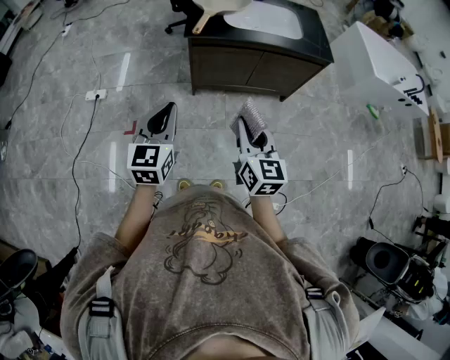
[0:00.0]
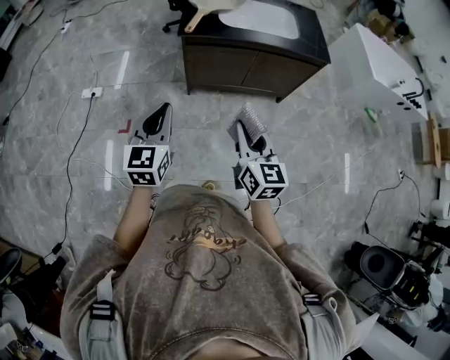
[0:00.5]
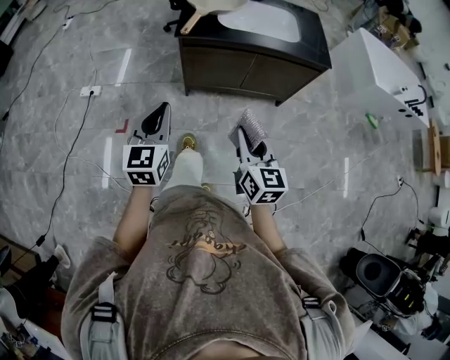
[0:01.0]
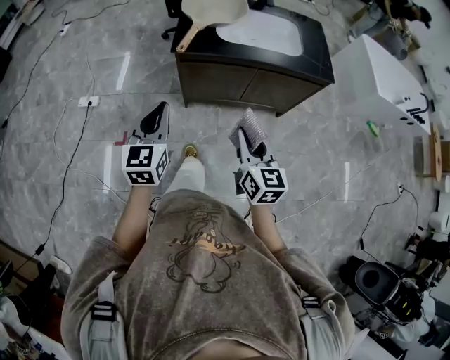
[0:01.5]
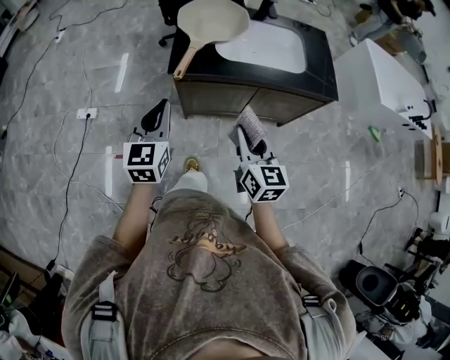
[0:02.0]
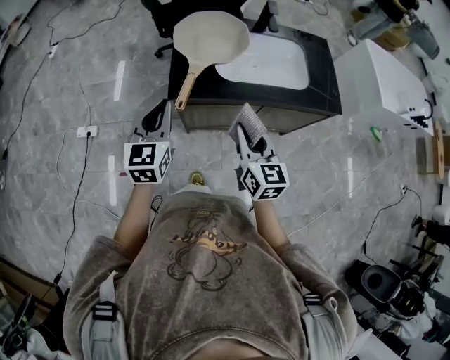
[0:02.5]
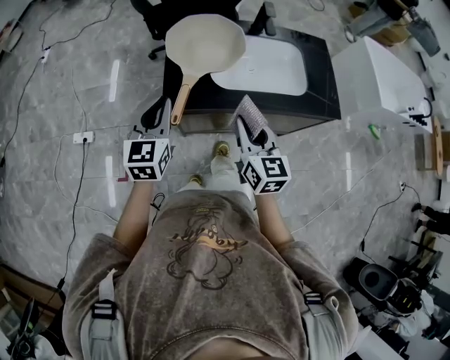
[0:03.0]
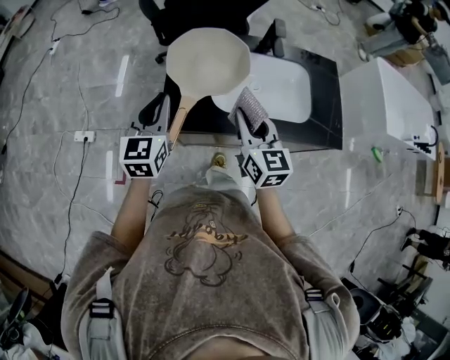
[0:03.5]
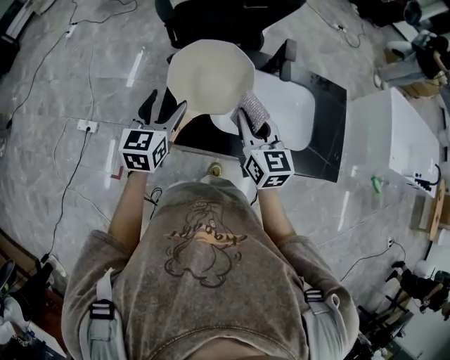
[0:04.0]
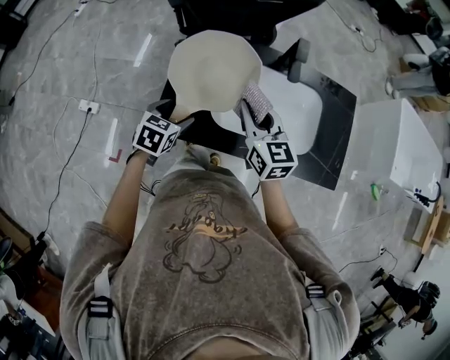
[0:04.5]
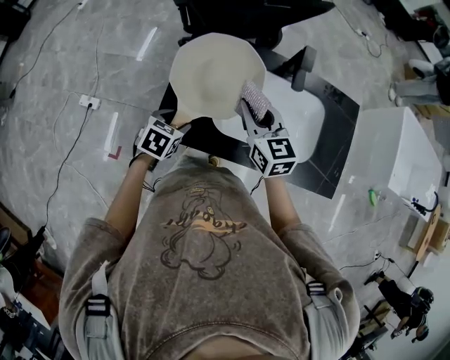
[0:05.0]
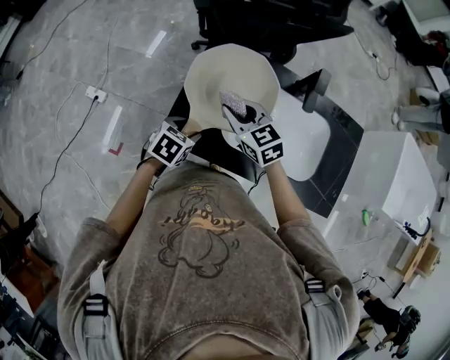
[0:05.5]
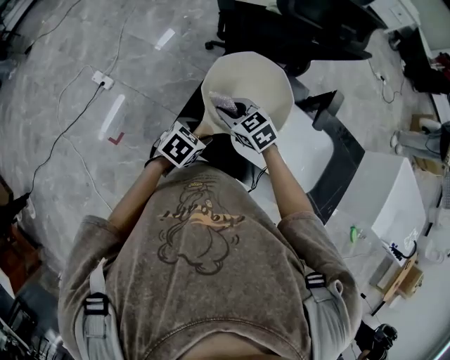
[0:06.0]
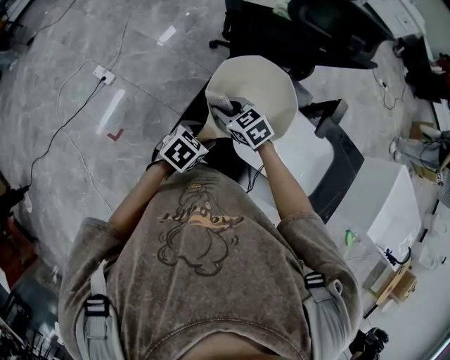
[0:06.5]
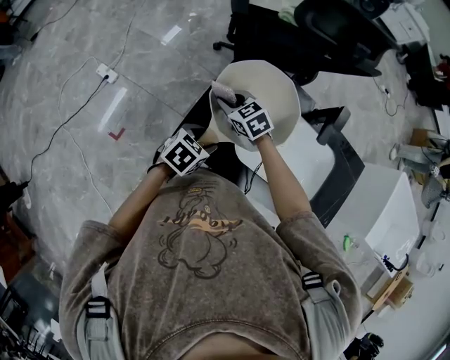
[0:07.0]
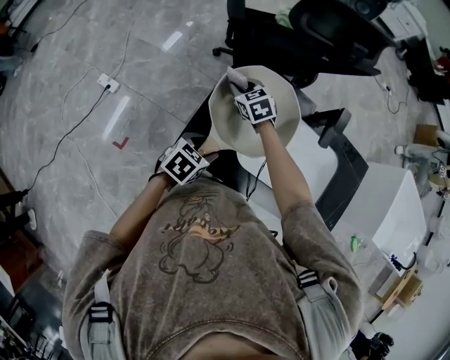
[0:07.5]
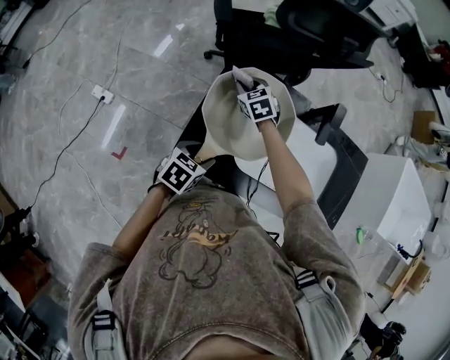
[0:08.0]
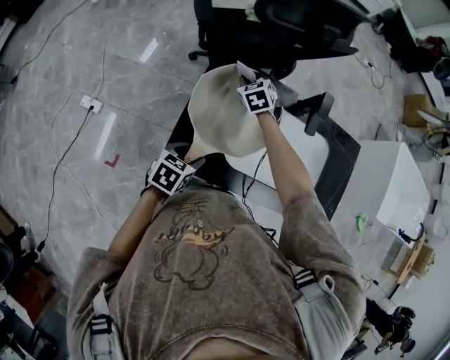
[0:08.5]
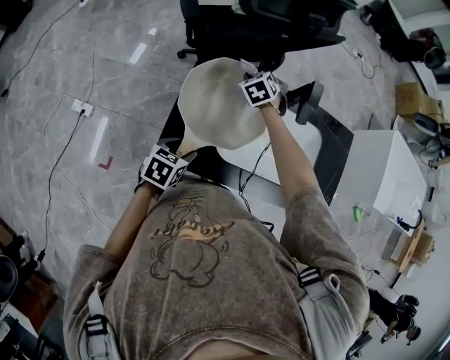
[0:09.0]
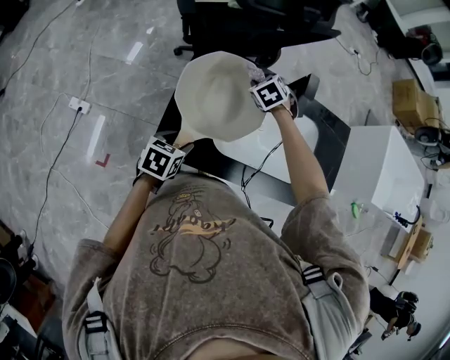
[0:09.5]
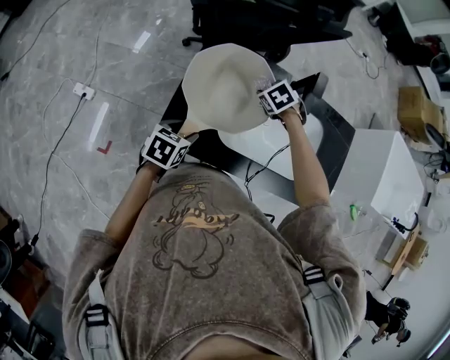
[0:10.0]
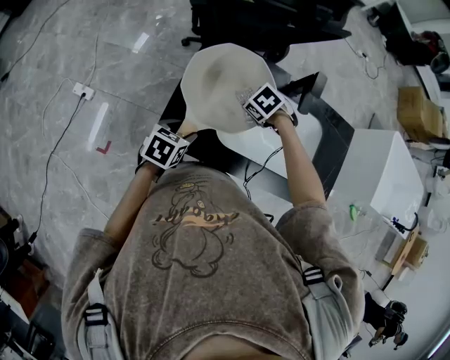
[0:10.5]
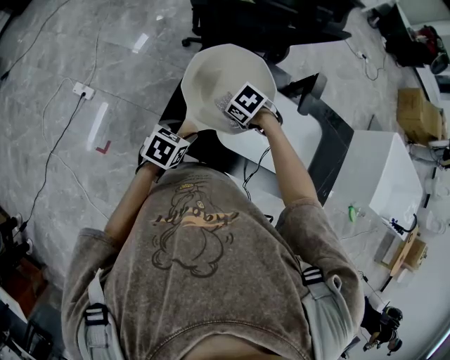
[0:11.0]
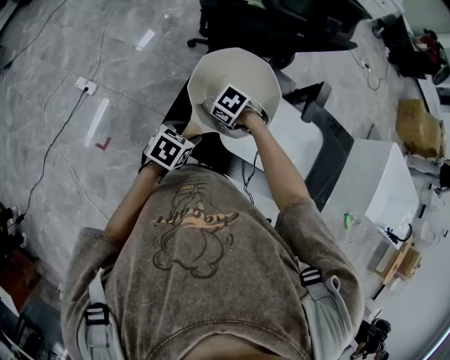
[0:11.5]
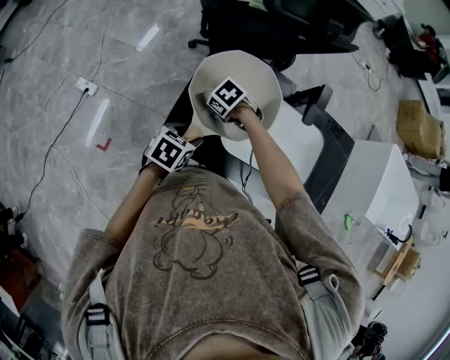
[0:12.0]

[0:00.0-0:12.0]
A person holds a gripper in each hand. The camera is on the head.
0:00.0 to 0:02.0: The grippers both shift forward by about 25 cm.
0:02.0 to 0:04.0: Both grippers move forward, roughly 35 cm. The left gripper opens up.
0:04.0 to 0:06.0: The right gripper goes some 25 cm to the left, downward and forward, and swivels some 60 degrees. Meanwhile the left gripper heads downward, covering some 15 cm, and tilts its fingers approximately 30 degrees downward.
0:06.0 to 0:08.0: The right gripper shifts approximately 20 cm forward, and rotates some 30 degrees.
0:08.0 to 0:10.0: The right gripper travels to the right by some 20 cm, and turns by roughly 30 degrees.
0:10.0 to 0:12.0: The right gripper changes place by approximately 20 cm, and swivels about 20 degrees.

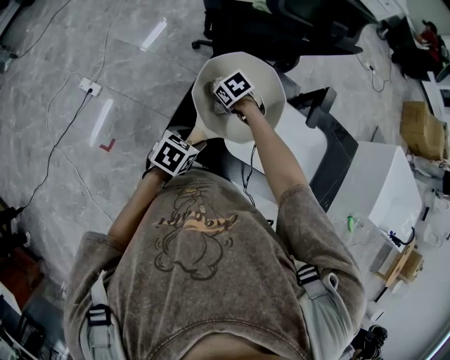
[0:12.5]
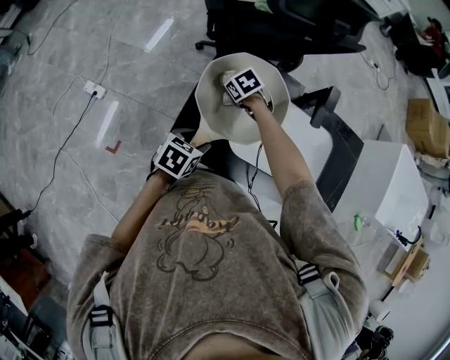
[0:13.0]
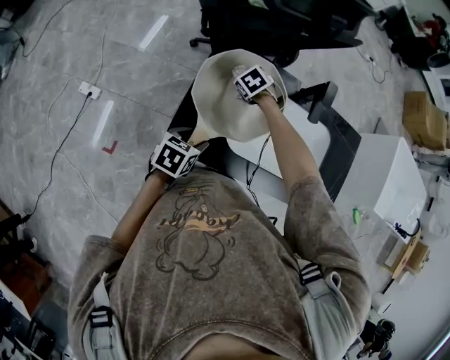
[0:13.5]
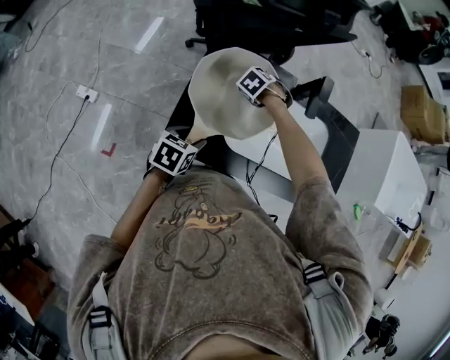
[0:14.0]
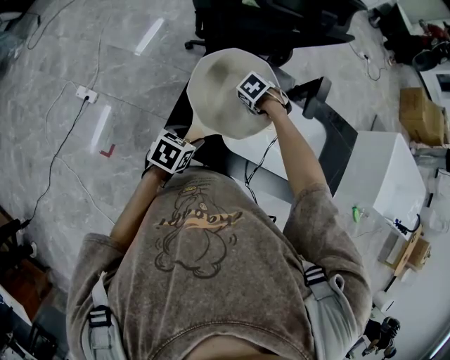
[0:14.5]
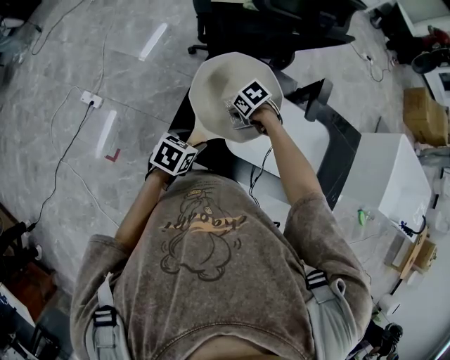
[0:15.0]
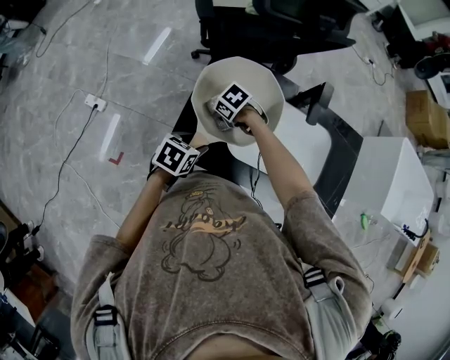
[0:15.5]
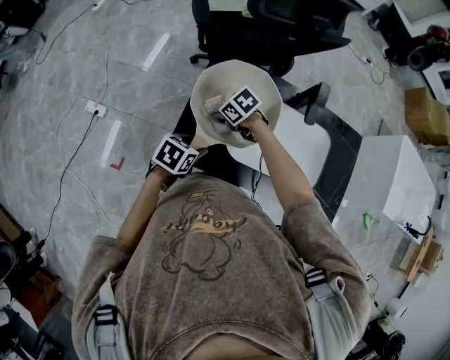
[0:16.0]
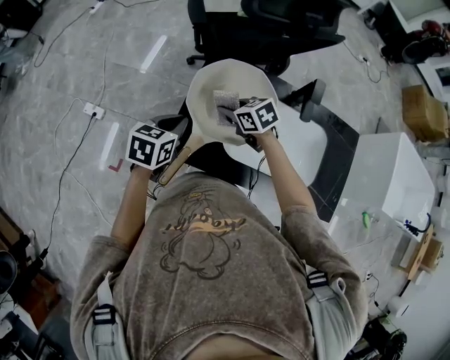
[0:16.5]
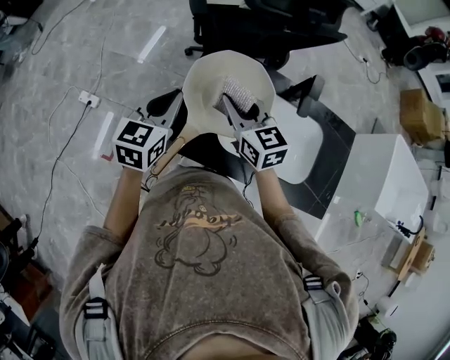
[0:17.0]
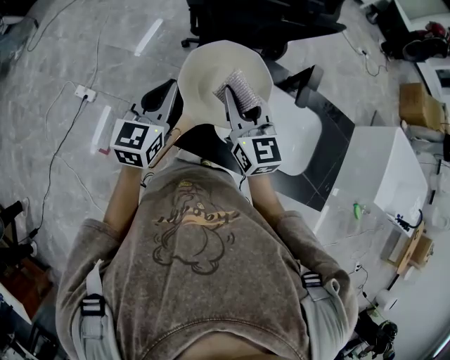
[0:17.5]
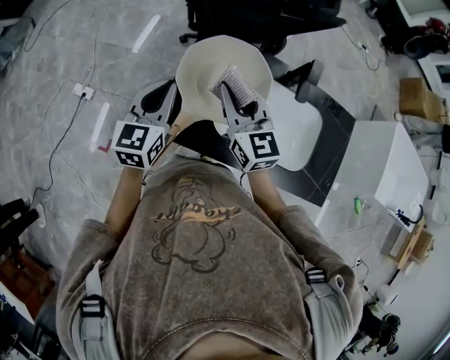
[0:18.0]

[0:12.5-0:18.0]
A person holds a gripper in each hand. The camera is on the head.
0:12.5 to 0:14.5: The right gripper moves roughly 15 cm, and rotates some 20 degrees.
0:14.5 to 0:16.0: The right gripper shifts by some 15 cm, and tilts its fingers roughly 30 degrees upward.
0:16.0 to 0:18.0: Both grippers move upward, roughly 20 cm. The right gripper angles its fingers upward, by roughly 50 degrees. Meanwhile the left gripper tips its fingers upward by roughly 40 degrees, and closes up.

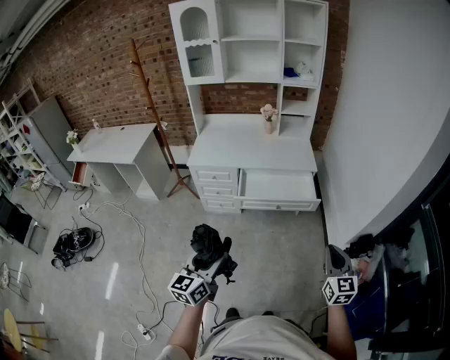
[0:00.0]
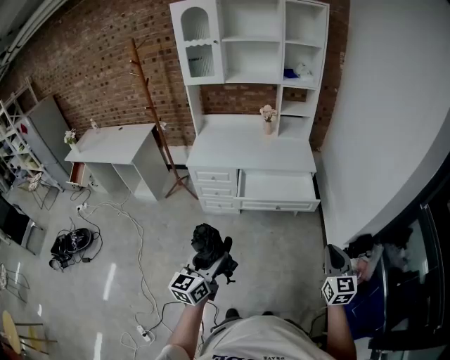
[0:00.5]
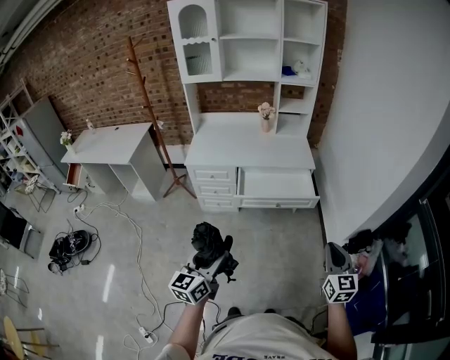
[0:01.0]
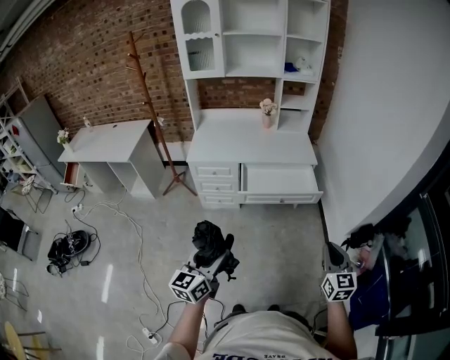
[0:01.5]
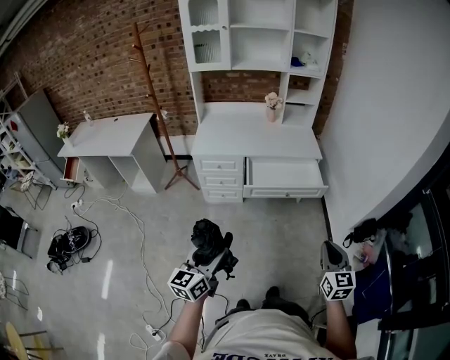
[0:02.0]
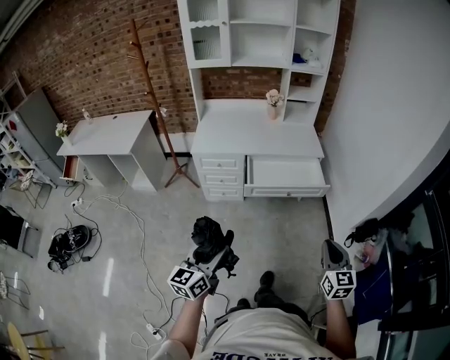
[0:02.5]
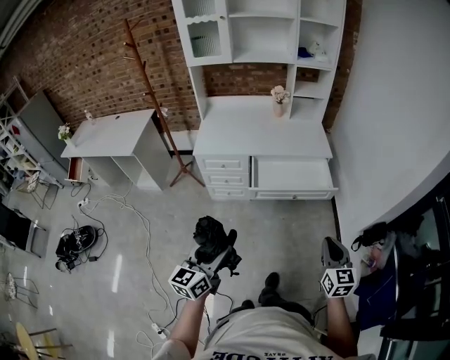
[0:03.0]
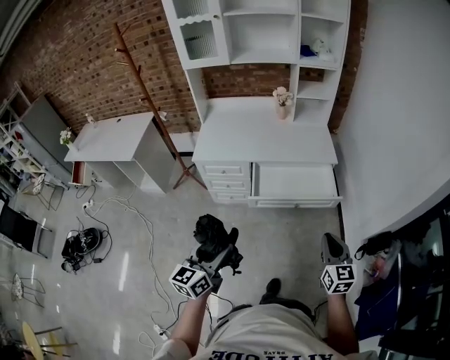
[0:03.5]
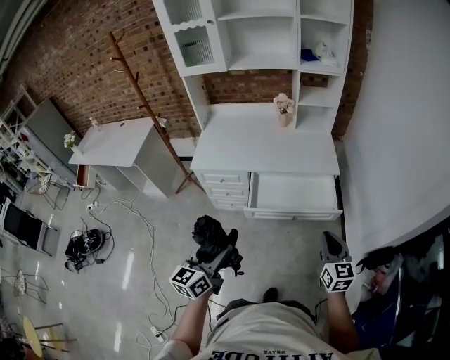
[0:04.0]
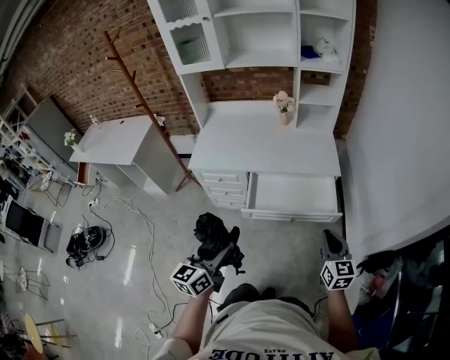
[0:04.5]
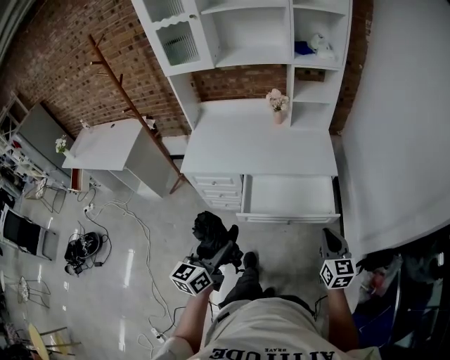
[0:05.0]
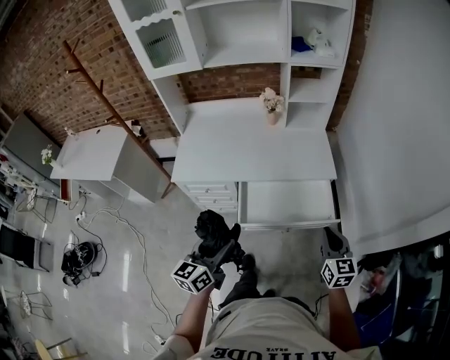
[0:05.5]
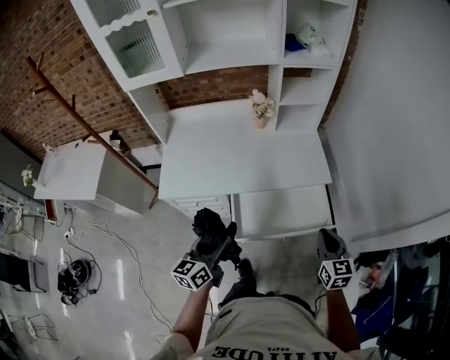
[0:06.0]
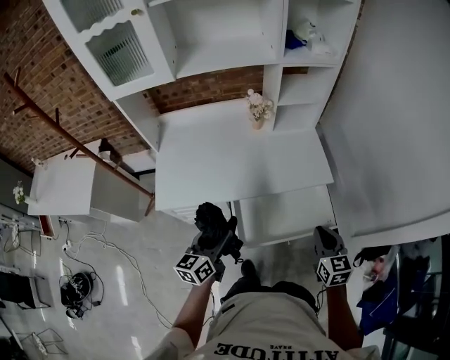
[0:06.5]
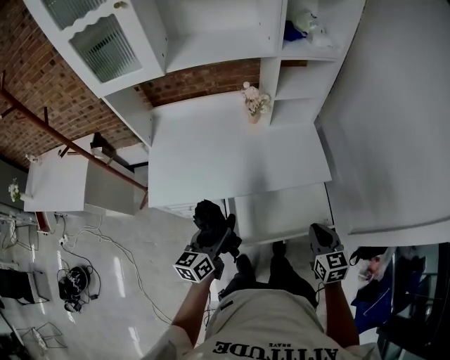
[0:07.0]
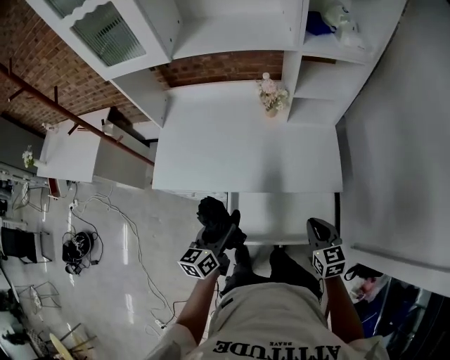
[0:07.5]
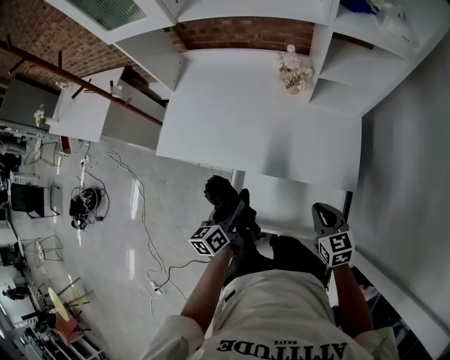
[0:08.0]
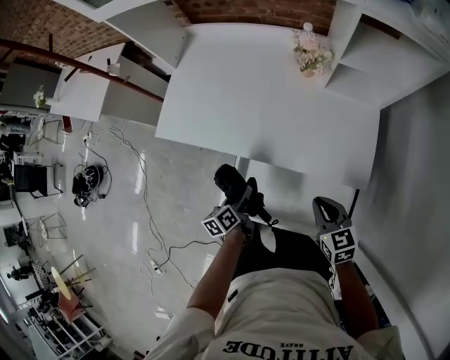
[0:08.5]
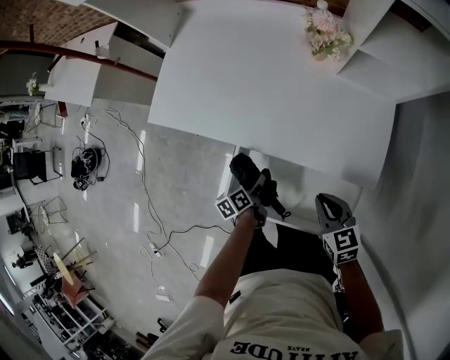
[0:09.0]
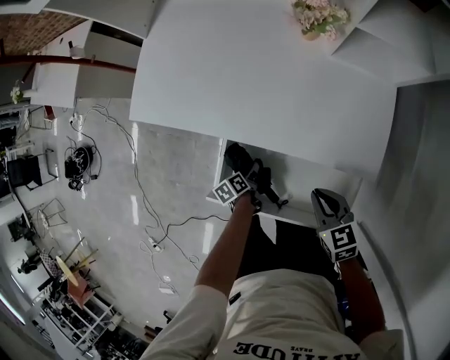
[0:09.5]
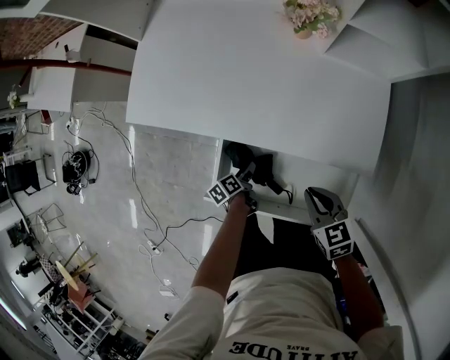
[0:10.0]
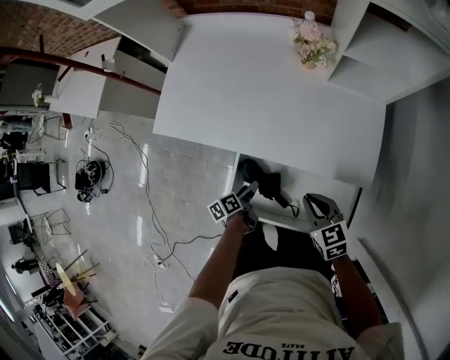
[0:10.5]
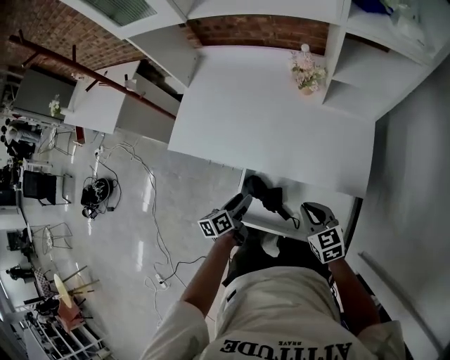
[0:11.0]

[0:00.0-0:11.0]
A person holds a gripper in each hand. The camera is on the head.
0:00.0 to 0:02.0: The left gripper moves to the left, roughly 10 cm; the right gripper travels to the left and backward by roughly 15 cm.
0:02.0 to 0:03.5: Both grippers move forward, approximately 15 cm.
0:03.5 to 0:05.5: The grippers both shift forward by about 25 cm.
0:05.5 to 0:07.5: The left gripper is displaced forward and downward by roughly 25 cm, while the right gripper moves forward, roughly 20 cm, and turns by approximately 20 degrees.
0:07.5 to 0:09.0: The right gripper travels downward and forward by approximately 15 cm, and rotates about 30 degrees; the left gripper travels downward by some 30 cm, and twists roughly 40 degrees counterclockwise, seen from behind.
0:09.0 to 0:11.0: The left gripper heads upward, covering about 15 cm, and rotates about 20 degrees. The right gripper moves upward, approximately 5 cm.
